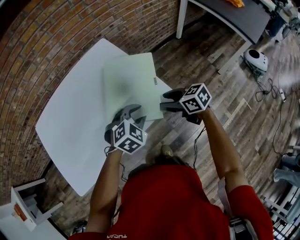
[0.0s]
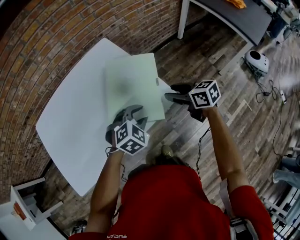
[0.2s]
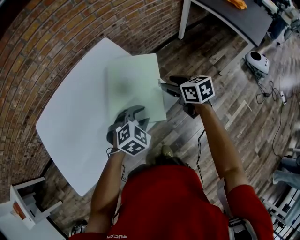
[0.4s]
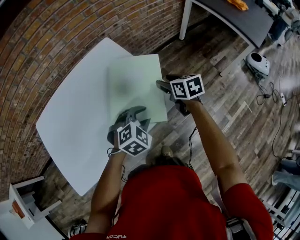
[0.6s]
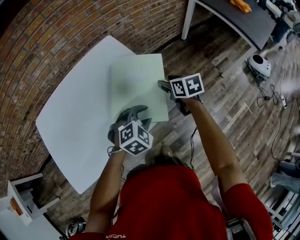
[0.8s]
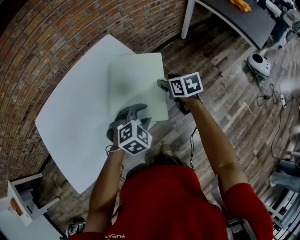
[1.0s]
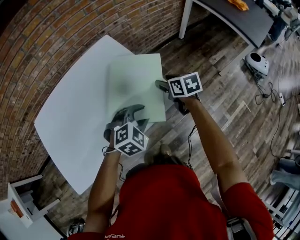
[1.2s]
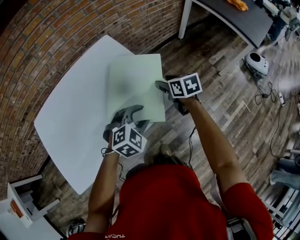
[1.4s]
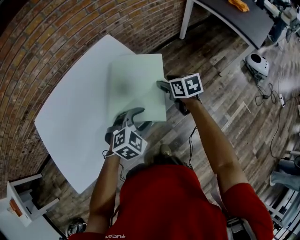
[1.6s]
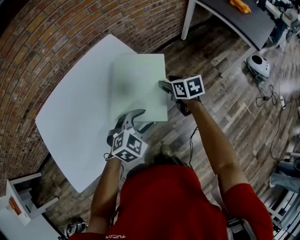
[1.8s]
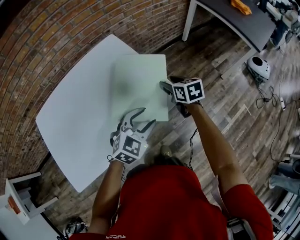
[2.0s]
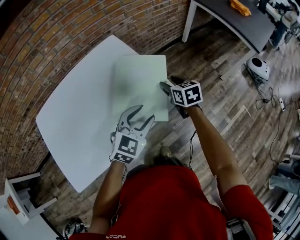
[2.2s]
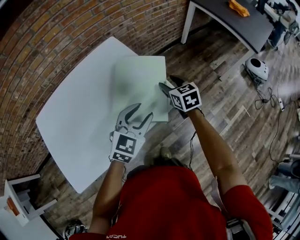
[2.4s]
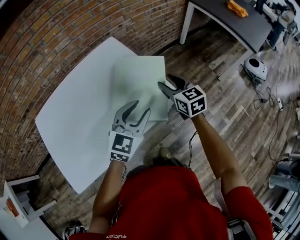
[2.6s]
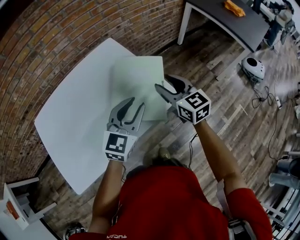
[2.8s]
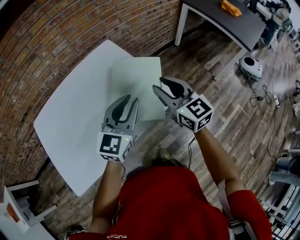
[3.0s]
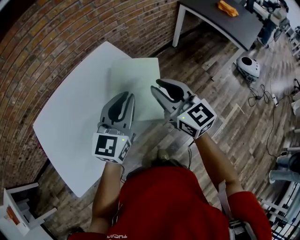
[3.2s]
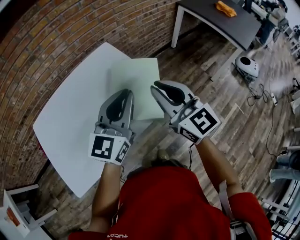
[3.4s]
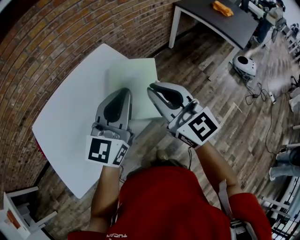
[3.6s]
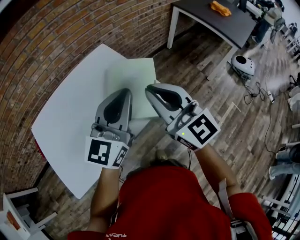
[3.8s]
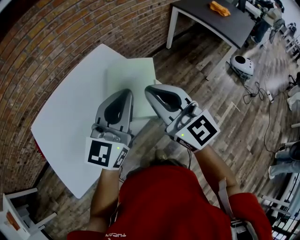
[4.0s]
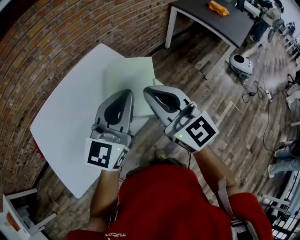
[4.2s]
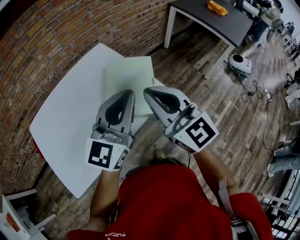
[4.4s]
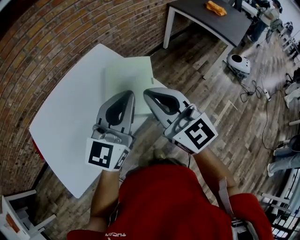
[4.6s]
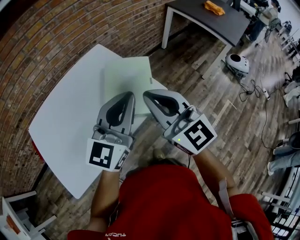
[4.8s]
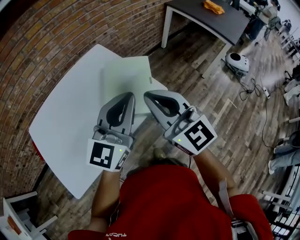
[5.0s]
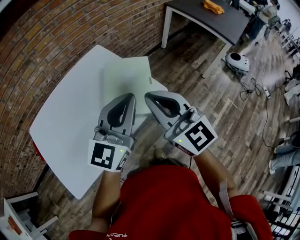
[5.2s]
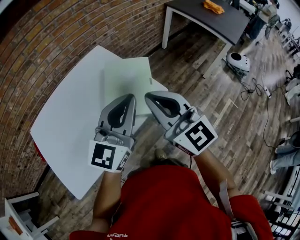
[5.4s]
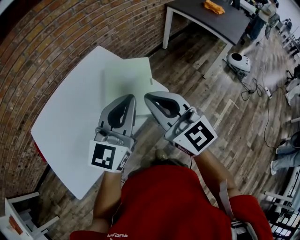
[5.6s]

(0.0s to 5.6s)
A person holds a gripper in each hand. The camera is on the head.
0.0s - 1.4s: The right gripper travels forward by approximately 10 cm, and rotates approximately 30 degrees.
1.4s - 2.8s: The right gripper travels upward and backward by roughly 15 cm, and swivels about 30 degrees. The left gripper shifts roughly 10 cm upward, and tilts its fingers about 30 degrees upward.
2.8s - 4.2s: The left gripper goes about 15 cm upward, changes its angle by about 20 degrees, and closes, while the right gripper moves upward and backward, roughly 20 cm, swivels roughly 20 degrees, and closes up.
4.2s - 5.6s: The grippers stay close to where they were, moving slightly.

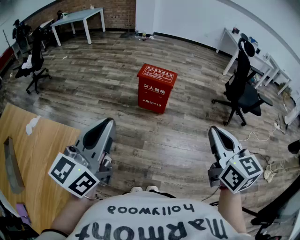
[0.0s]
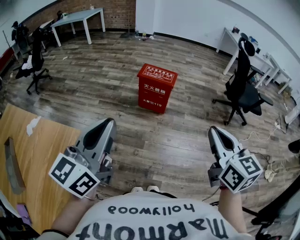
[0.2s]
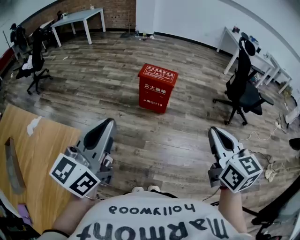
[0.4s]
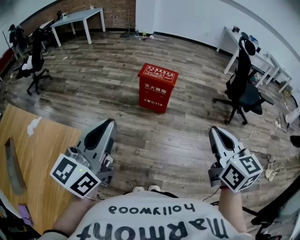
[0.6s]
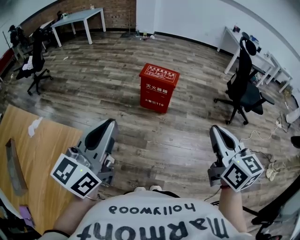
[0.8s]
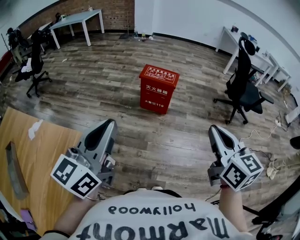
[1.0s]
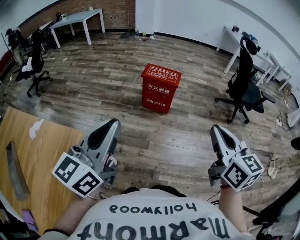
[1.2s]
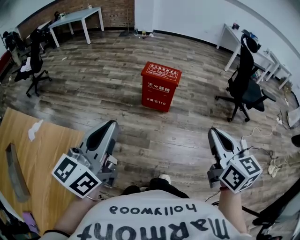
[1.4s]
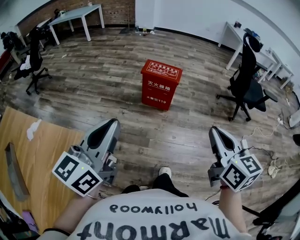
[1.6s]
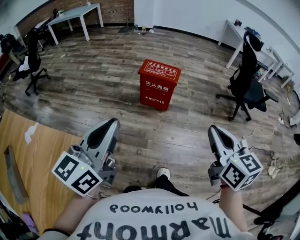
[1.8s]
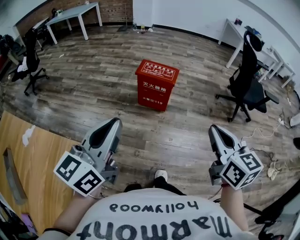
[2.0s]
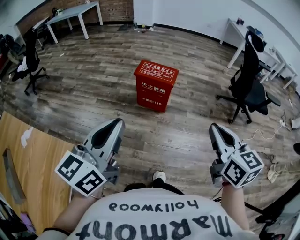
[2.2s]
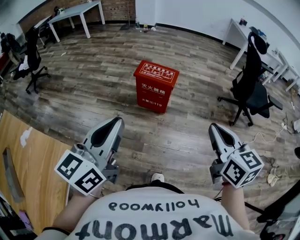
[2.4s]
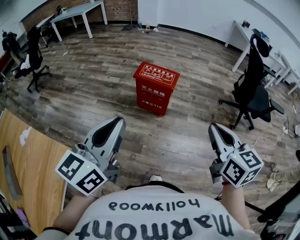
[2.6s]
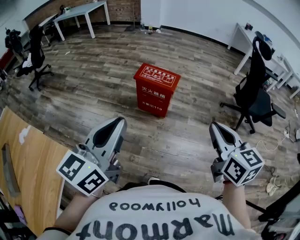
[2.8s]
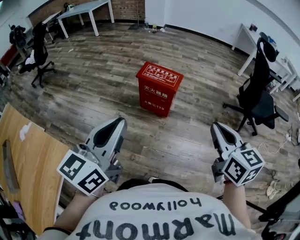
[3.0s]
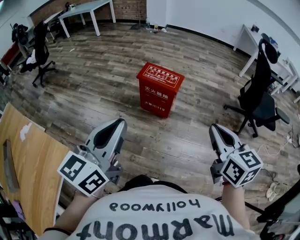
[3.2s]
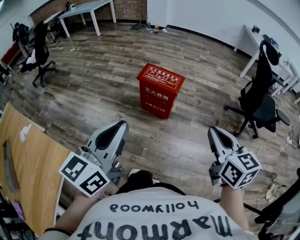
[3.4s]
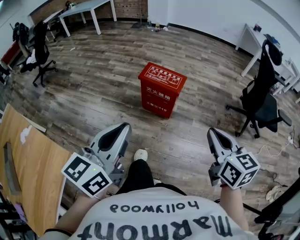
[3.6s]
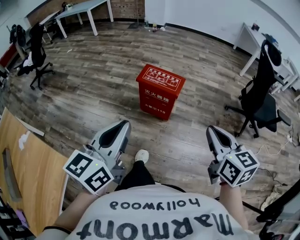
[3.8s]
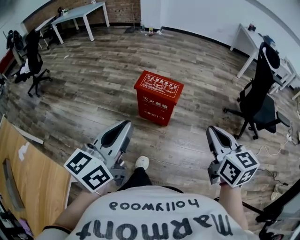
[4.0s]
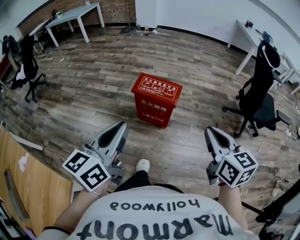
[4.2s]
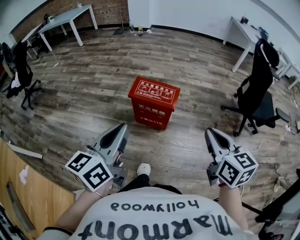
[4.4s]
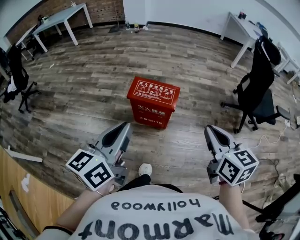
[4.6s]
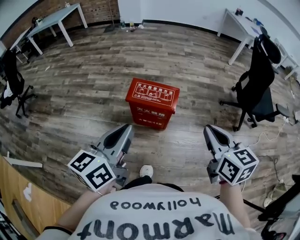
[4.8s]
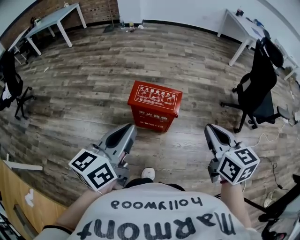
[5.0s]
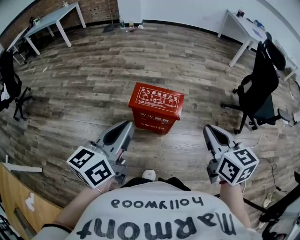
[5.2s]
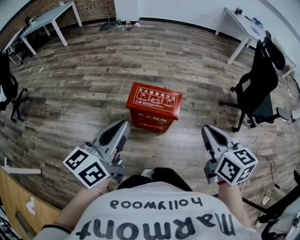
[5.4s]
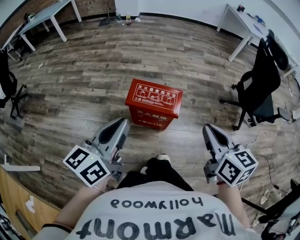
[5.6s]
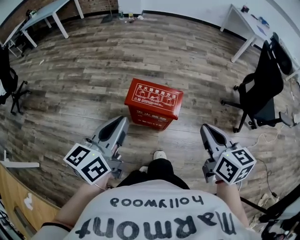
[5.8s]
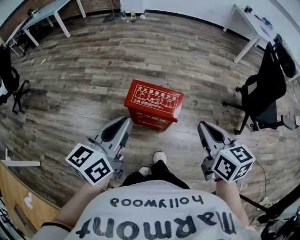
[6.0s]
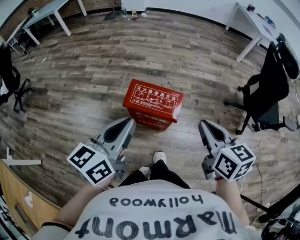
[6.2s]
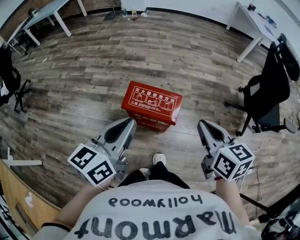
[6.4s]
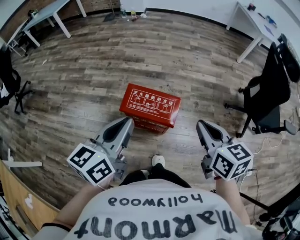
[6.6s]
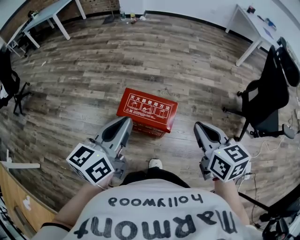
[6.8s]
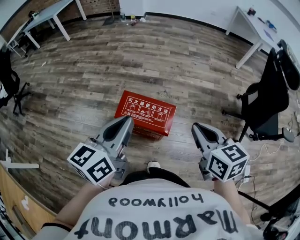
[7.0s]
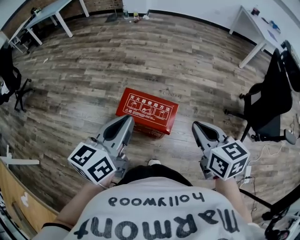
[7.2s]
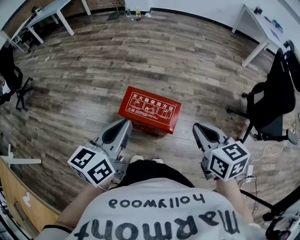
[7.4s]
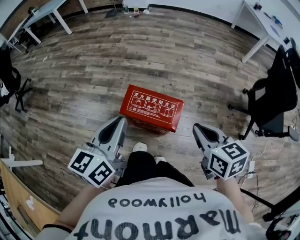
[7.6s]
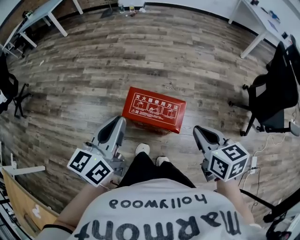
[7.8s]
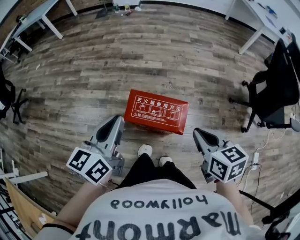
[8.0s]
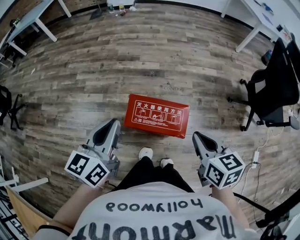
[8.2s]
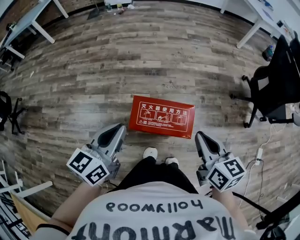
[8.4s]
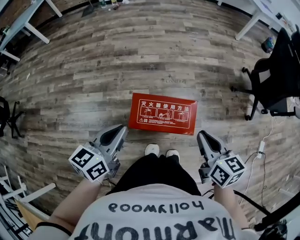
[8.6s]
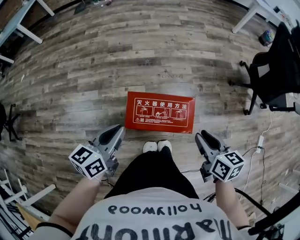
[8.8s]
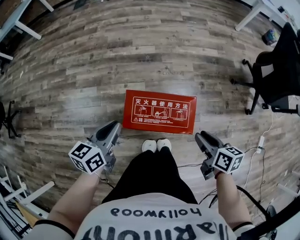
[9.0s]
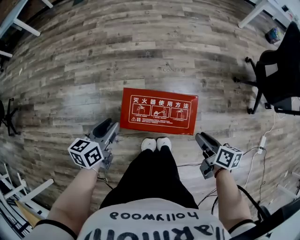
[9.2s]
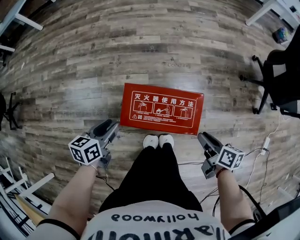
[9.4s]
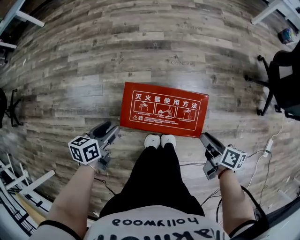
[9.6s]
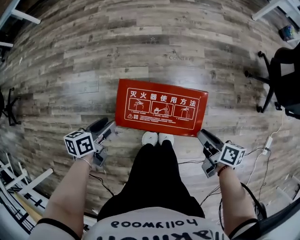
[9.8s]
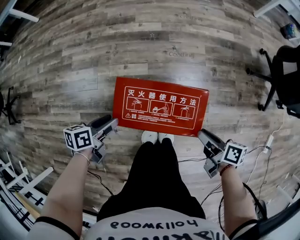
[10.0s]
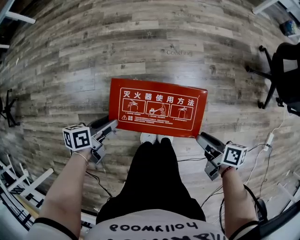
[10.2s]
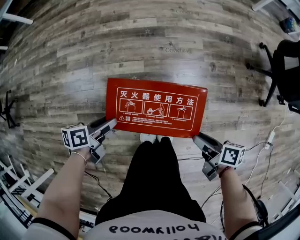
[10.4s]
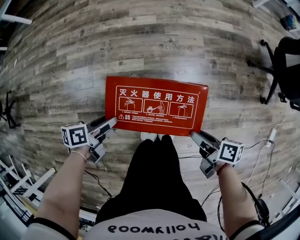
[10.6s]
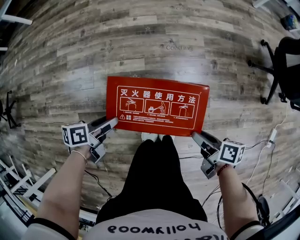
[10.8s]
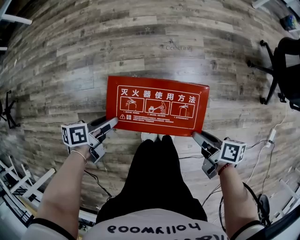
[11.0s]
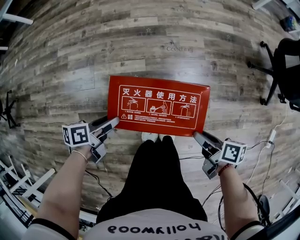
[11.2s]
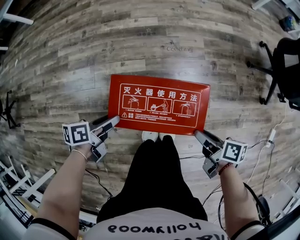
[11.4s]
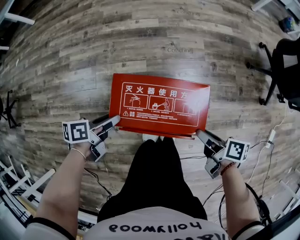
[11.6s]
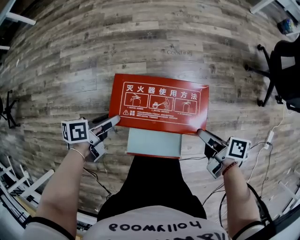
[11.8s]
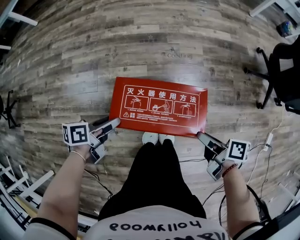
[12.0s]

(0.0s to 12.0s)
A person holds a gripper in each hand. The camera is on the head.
0.0s - 1.6s: The left gripper ends up some 5 cm from where it was, while the right gripper ends up roughly 5 cm from where it was.
1.6s - 3.0s: The right gripper moves forward and to the right, some 20 cm; the left gripper travels to the right and forward by approximately 20 cm.
3.0s - 4.4s: The grippers both shift forward by about 20 cm.
4.4s - 6.0s: The left gripper heads forward, covering some 20 cm. The right gripper shifts roughly 20 cm forward and to the left.
6.0s - 7.6s: The left gripper is displaced forward by some 10 cm, while the right gripper shifts some 10 cm forward and downward.
7.6s - 9.0s: The left gripper moves downward, forward and to the left, some 25 cm, and swivels roughly 30 degrees. The right gripper moves downward, roughly 20 cm, turns by about 30 degrees, and opens.
9.0s - 10.4s: The two grippers go some 15 cm downward. The left gripper rotates some 40 degrees, and opens up. The right gripper swivels about 30 degrees.
10.4s - 12.0s: The right gripper heads upward, covering roughly 5 cm.

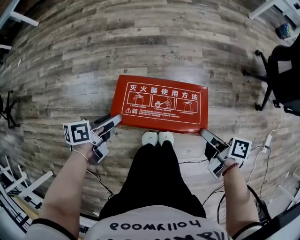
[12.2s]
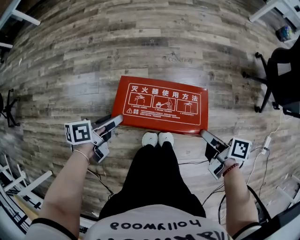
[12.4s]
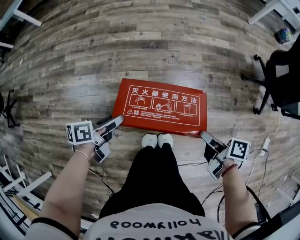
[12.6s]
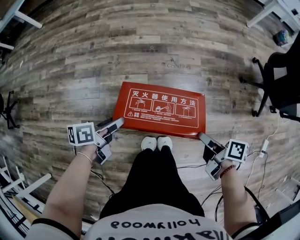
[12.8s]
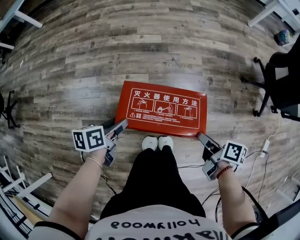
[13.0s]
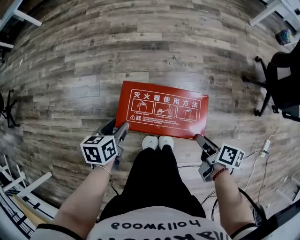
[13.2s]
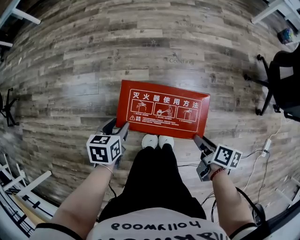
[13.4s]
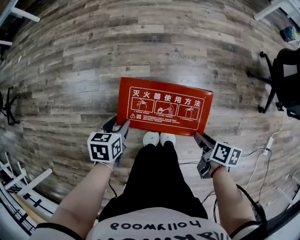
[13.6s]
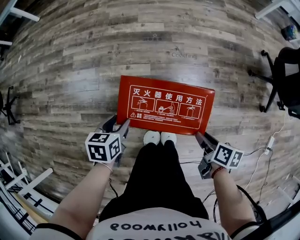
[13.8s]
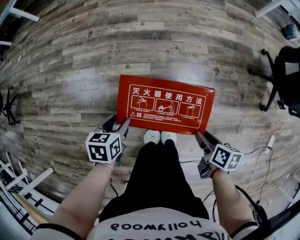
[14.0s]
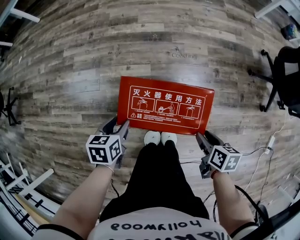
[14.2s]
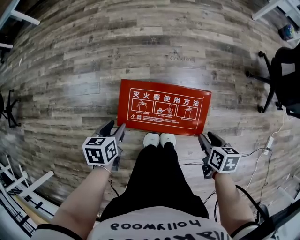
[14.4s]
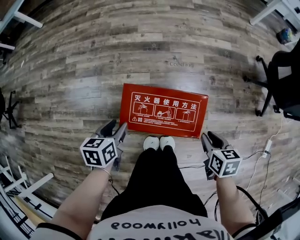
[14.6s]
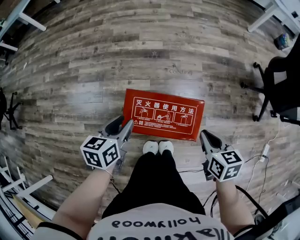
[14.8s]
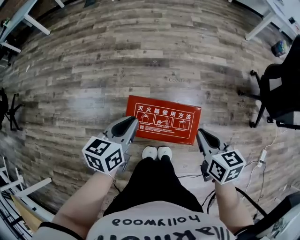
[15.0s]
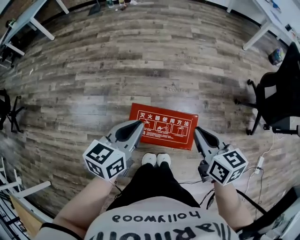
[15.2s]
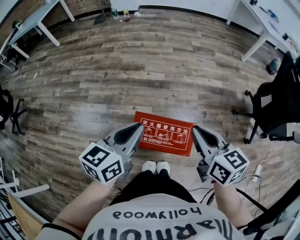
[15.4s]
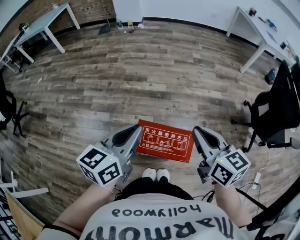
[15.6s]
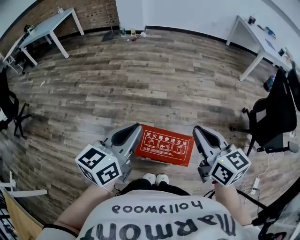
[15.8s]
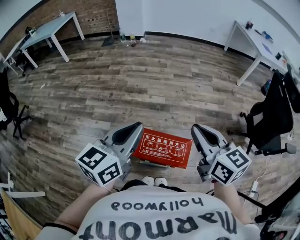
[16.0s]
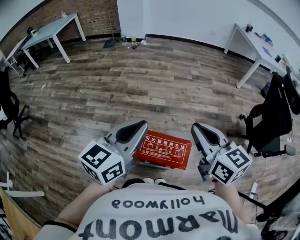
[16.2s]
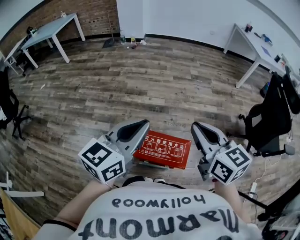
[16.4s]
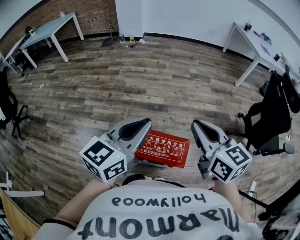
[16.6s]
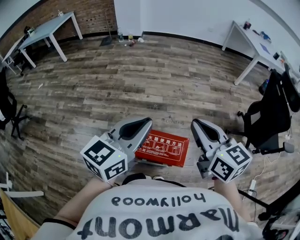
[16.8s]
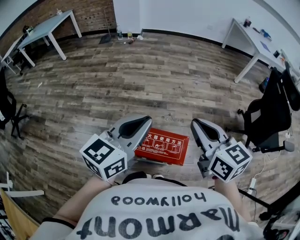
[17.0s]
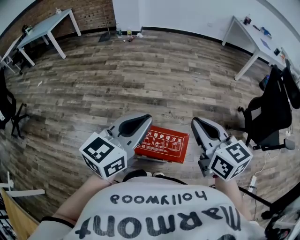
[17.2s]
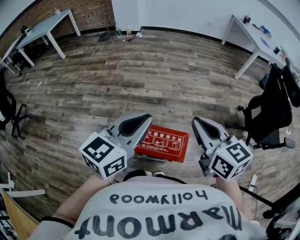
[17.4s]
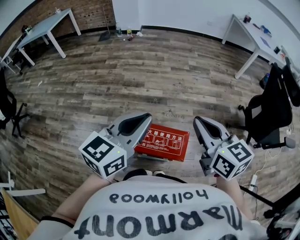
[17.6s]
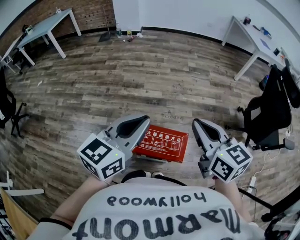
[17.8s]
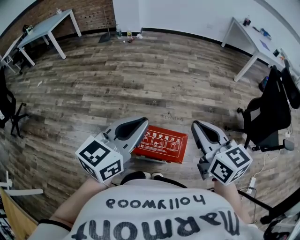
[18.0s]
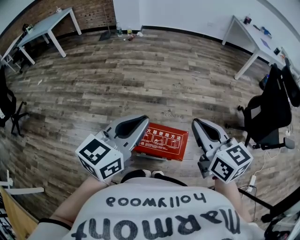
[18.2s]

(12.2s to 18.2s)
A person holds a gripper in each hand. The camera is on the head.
12.2s - 13.8s: The left gripper changes its angle by roughly 40 degrees; the right gripper is displaced downward by some 5 cm, and rotates some 20 degrees.
13.8s - 15.2s: Both grippers travel together upward, some 25 cm. The right gripper rotates about 40 degrees, and closes, while the left gripper angles its fingers upward, by some 30 degrees, and closes.
15.2s - 16.6s: The grippers both shift upward by roughly 20 cm. The left gripper swivels approximately 20 degrees. Meanwhile the right gripper turns by approximately 20 degrees.
16.6s - 18.2s: There are only small adjustments of the grippers.
